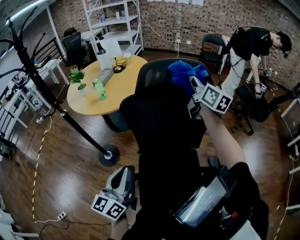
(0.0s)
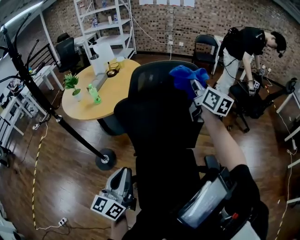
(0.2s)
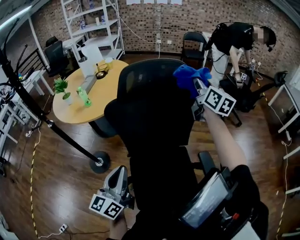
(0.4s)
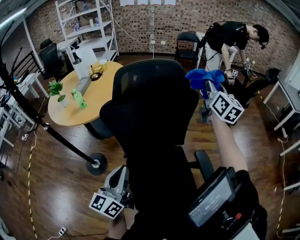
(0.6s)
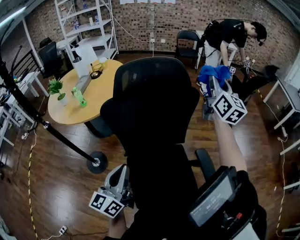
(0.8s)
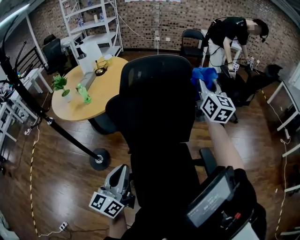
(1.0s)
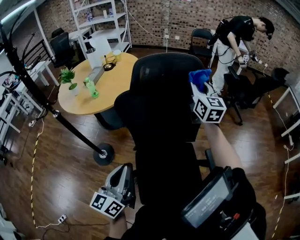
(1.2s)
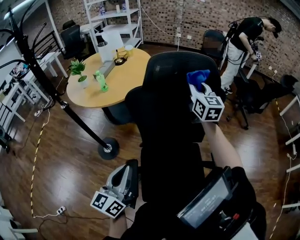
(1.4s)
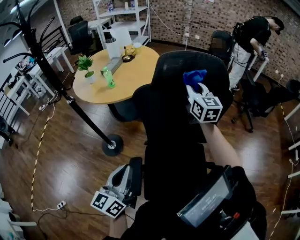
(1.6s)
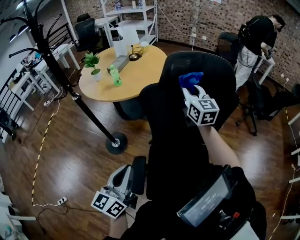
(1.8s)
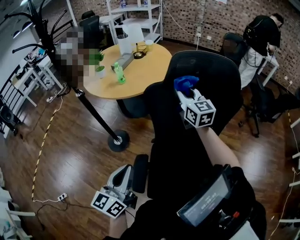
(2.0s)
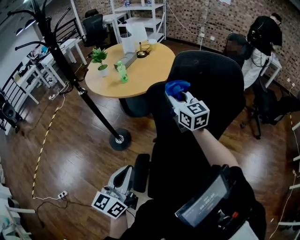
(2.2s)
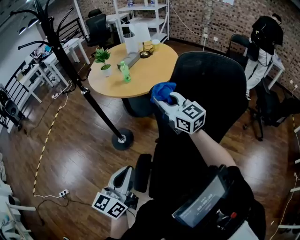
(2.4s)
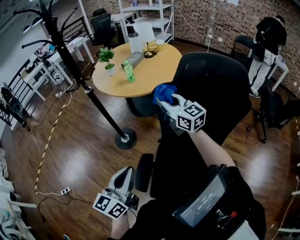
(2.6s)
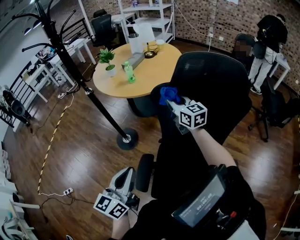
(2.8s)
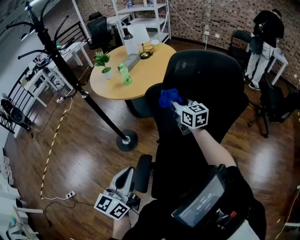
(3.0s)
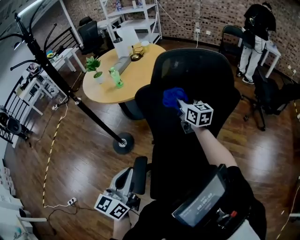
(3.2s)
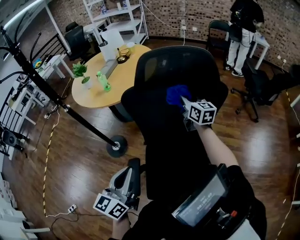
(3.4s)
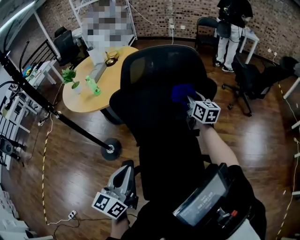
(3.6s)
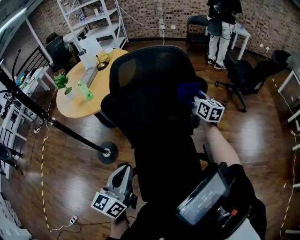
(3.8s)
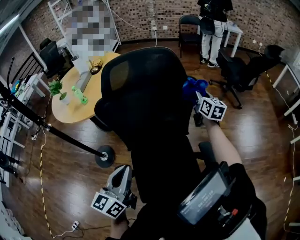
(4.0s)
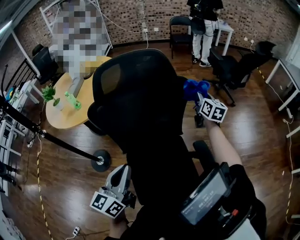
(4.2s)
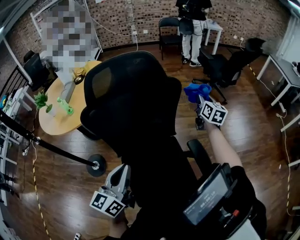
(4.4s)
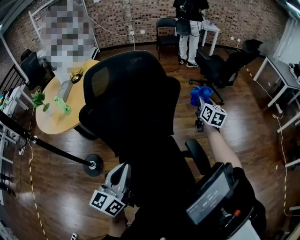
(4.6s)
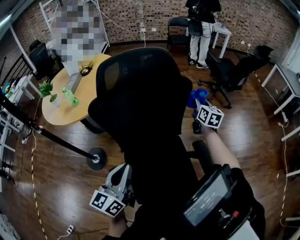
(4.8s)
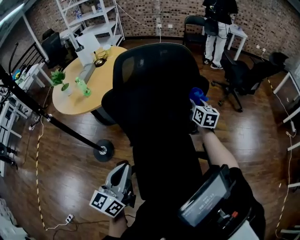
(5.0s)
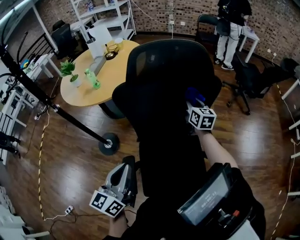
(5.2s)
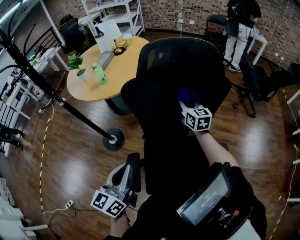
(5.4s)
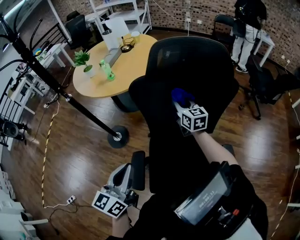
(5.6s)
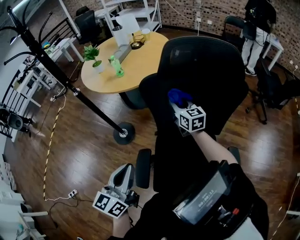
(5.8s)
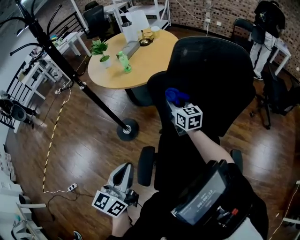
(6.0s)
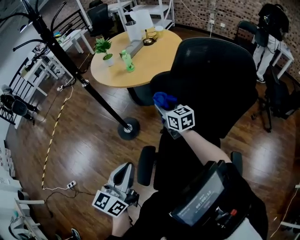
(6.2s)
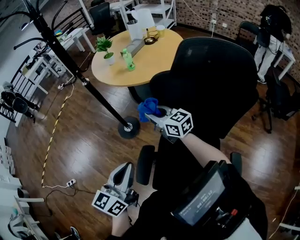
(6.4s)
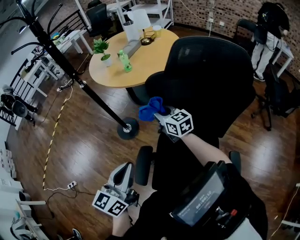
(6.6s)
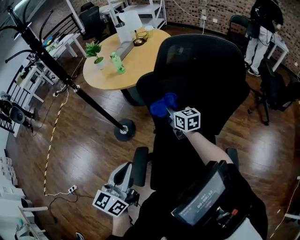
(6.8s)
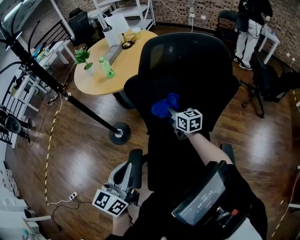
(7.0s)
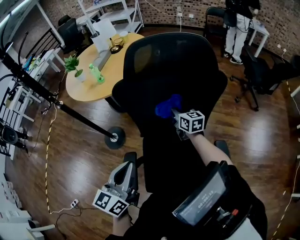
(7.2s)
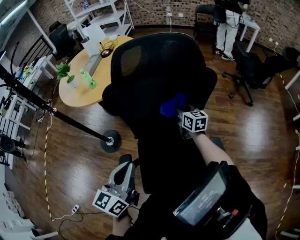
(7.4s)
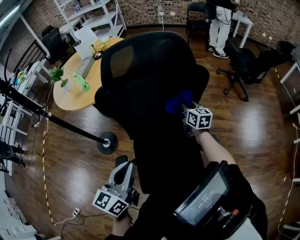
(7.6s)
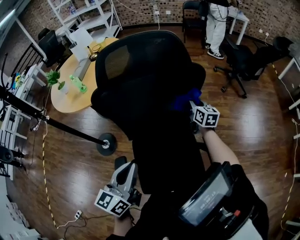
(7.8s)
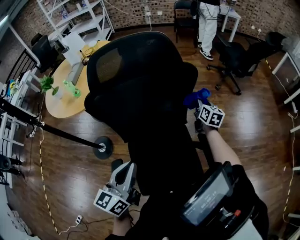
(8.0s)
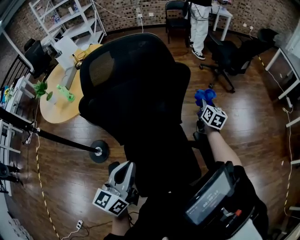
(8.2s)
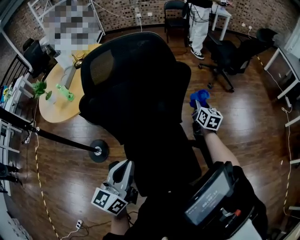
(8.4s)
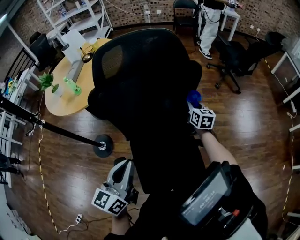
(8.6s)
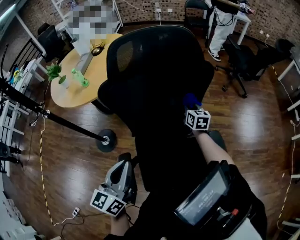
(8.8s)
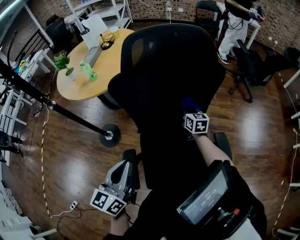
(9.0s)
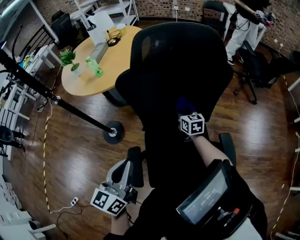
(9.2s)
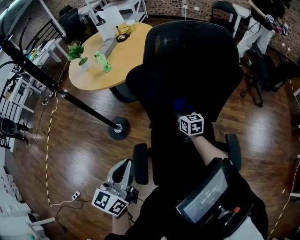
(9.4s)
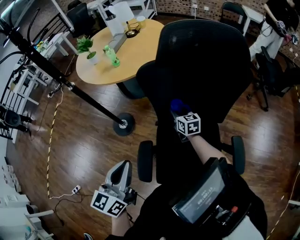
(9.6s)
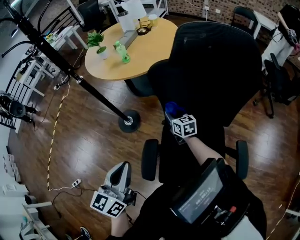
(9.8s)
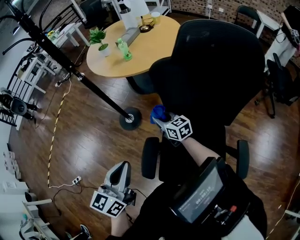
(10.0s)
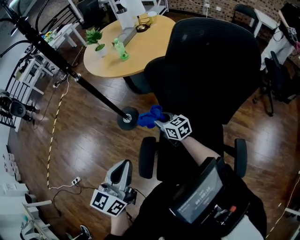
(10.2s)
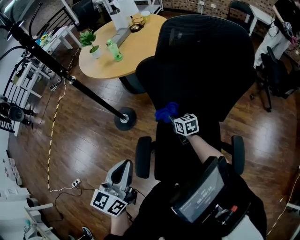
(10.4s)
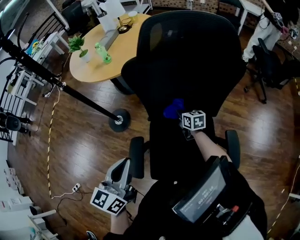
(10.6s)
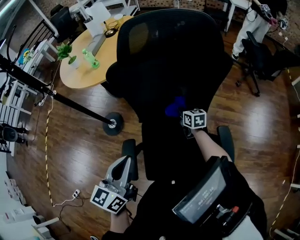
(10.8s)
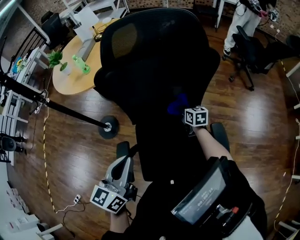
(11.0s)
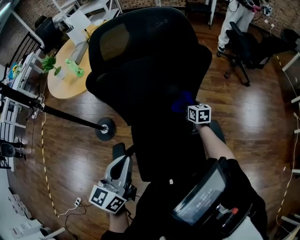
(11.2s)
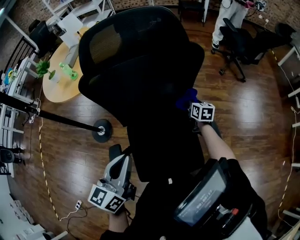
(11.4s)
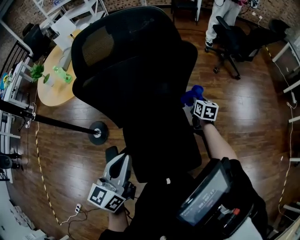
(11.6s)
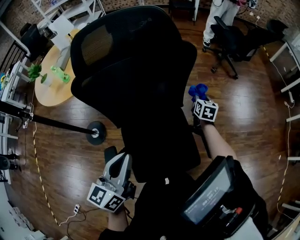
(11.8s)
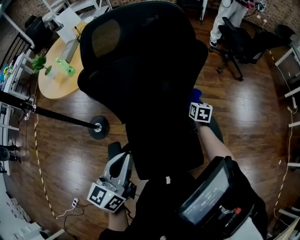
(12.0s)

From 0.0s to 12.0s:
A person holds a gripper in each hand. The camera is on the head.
From 0.0s to 1.6s: The right gripper is displaced downward by about 5 cm, goes to the right and returns, some 15 cm each way, and swivels about 20 degrees.
From 1.6s to 3.0s: The right gripper heads to the left and downward, covering approximately 15 cm, and changes its angle by about 30 degrees.
From 3.0s to 4.4s: The right gripper ends up about 50 cm from where it was, and swivels about 60 degrees. Meanwhile the left gripper ends up some 15 cm from where it was, and swivels some 30 degrees.
From 4.4s to 6.0s: The left gripper changes place by roughly 20 cm, and turns by about 30 degrees; the right gripper ends up roughly 50 cm from where it was, and changes its angle by roughly 50 degrees.
From 6.0s to 7.6s: The right gripper changes place by some 30 cm, and swivels roughly 30 degrees, while the left gripper changes place by roughly 15 cm.
From 7.6s to 9.0s: The right gripper travels downward by about 5 cm, and moves approximately 20 cm to the right and comes back. Meanwhile the left gripper shifts some 5 cm to the left.
From 9.0s to 10.4s: The right gripper ends up approximately 25 cm from where it was, and rotates approximately 30 degrees.
From 10.4s to 12.0s: The left gripper changes place by some 15 cm, and turns by approximately 20 degrees; the right gripper shifts by about 35 cm, and rotates some 50 degrees.

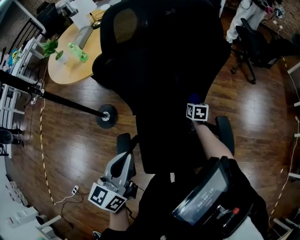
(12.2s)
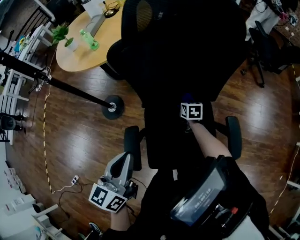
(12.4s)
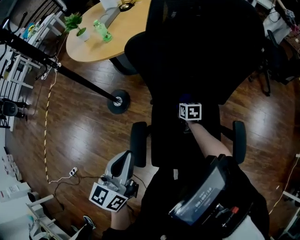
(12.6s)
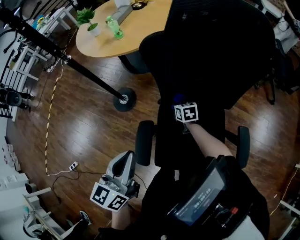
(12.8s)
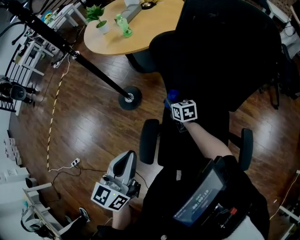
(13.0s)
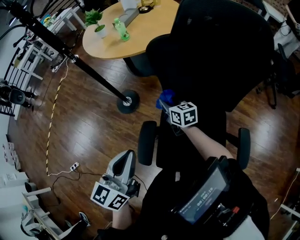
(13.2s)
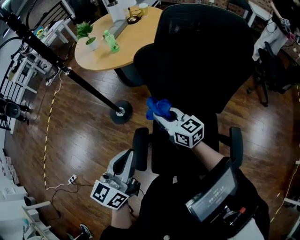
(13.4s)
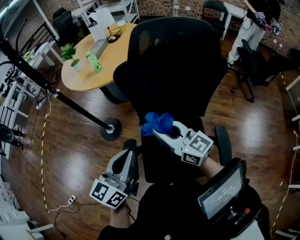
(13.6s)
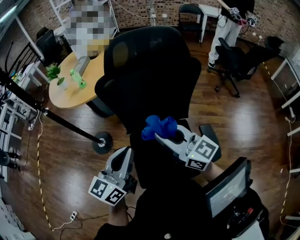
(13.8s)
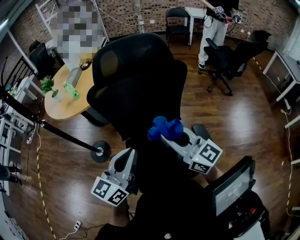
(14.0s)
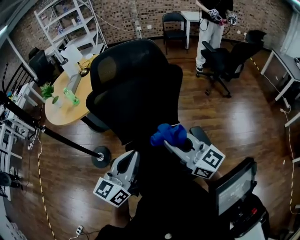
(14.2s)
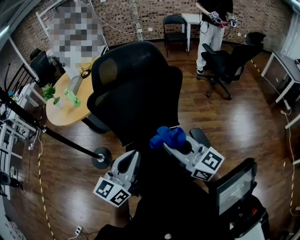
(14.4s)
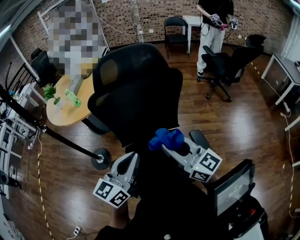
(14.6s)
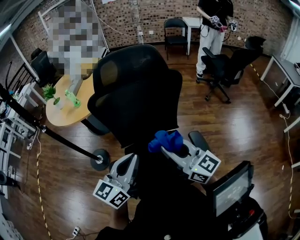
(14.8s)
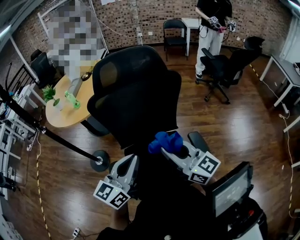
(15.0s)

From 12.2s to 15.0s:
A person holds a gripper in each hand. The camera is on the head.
From 12.2s to 13.6s: The right gripper is displaced upward by about 30 cm, and tilts its fingers some 50 degrees upward.
From 13.6s to 15.0s: The left gripper shifts approximately 15 cm to the right; the right gripper goes roughly 20 cm to the right, backward and upward.

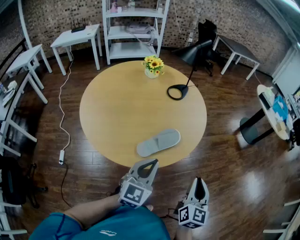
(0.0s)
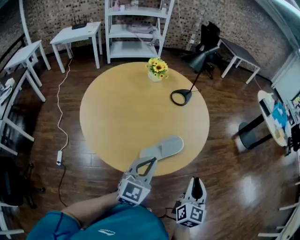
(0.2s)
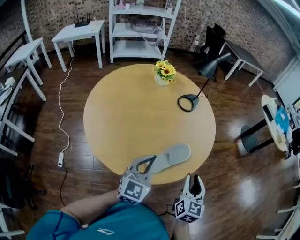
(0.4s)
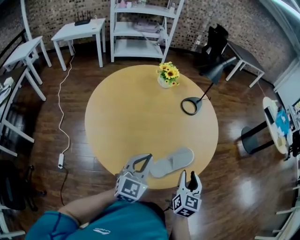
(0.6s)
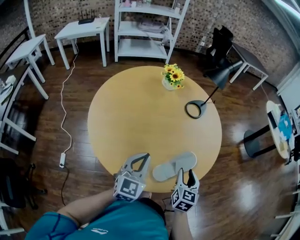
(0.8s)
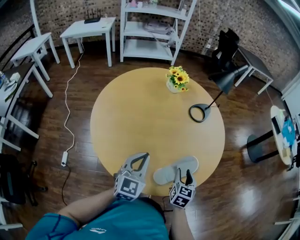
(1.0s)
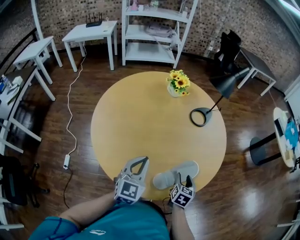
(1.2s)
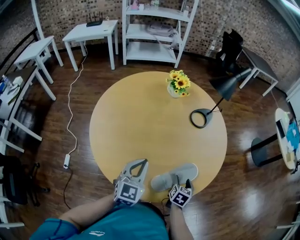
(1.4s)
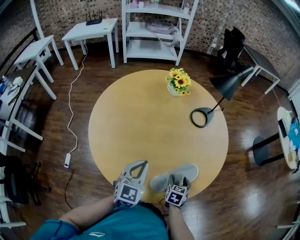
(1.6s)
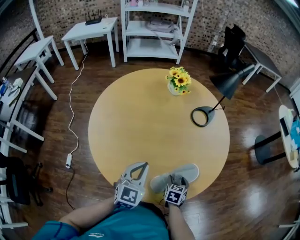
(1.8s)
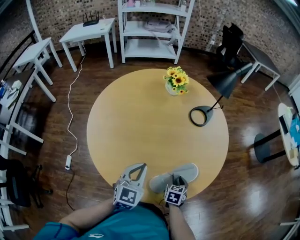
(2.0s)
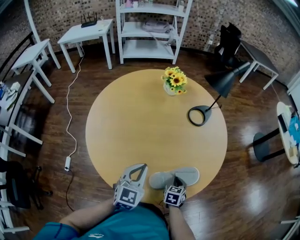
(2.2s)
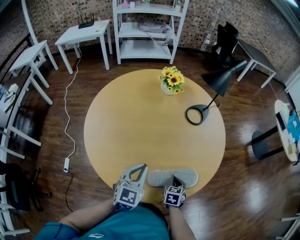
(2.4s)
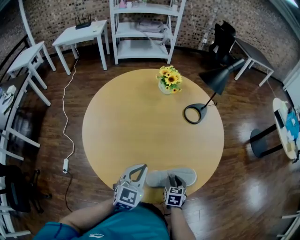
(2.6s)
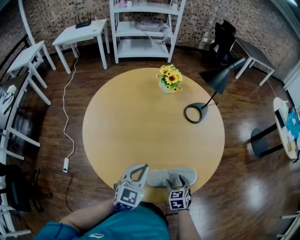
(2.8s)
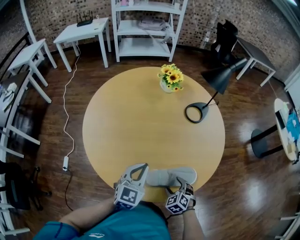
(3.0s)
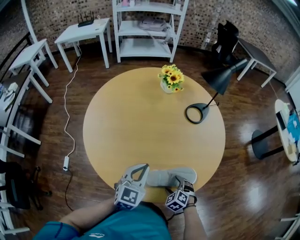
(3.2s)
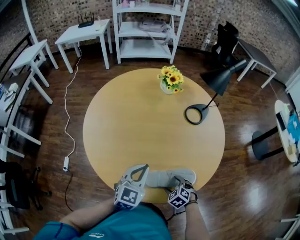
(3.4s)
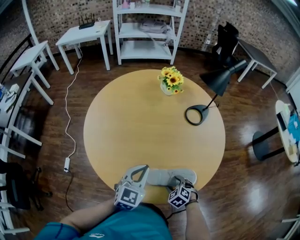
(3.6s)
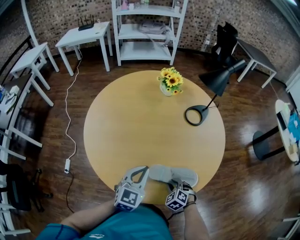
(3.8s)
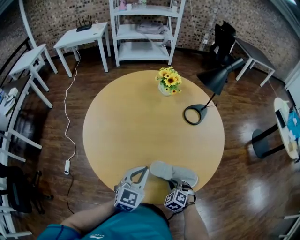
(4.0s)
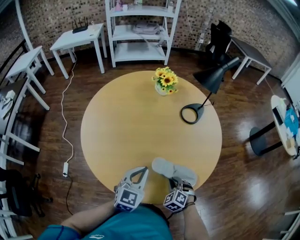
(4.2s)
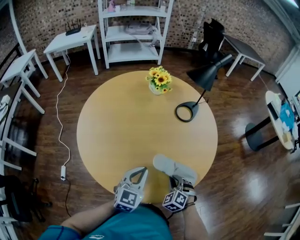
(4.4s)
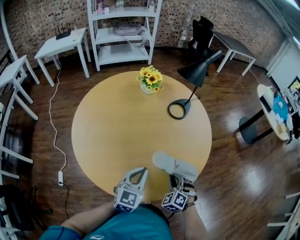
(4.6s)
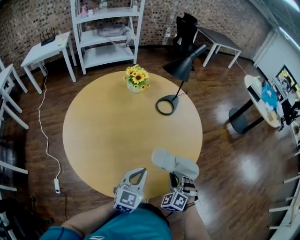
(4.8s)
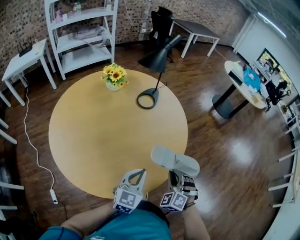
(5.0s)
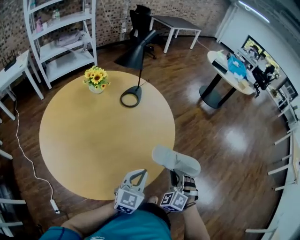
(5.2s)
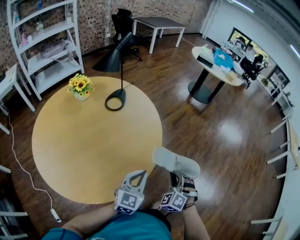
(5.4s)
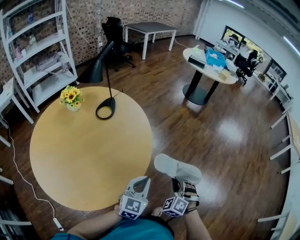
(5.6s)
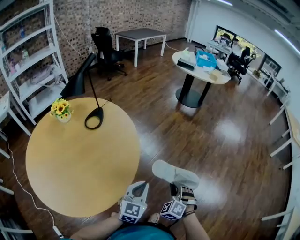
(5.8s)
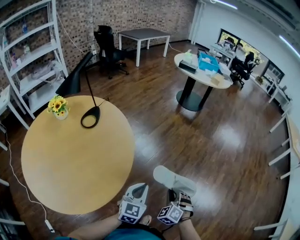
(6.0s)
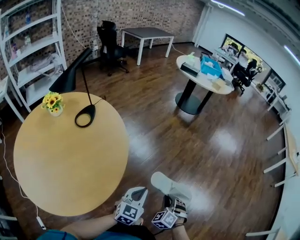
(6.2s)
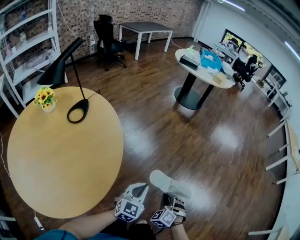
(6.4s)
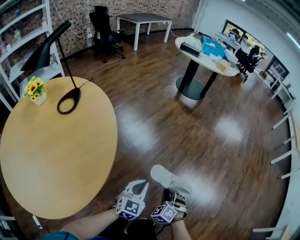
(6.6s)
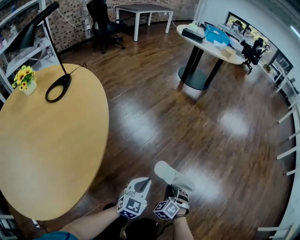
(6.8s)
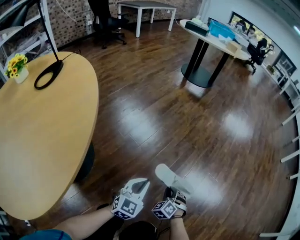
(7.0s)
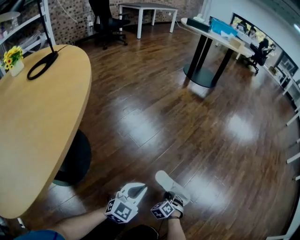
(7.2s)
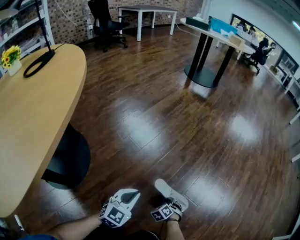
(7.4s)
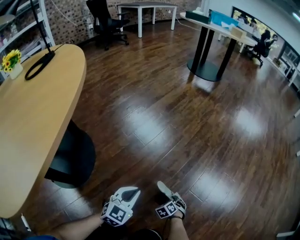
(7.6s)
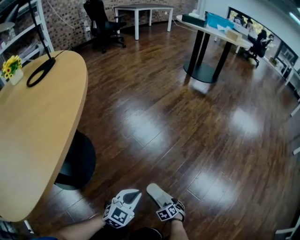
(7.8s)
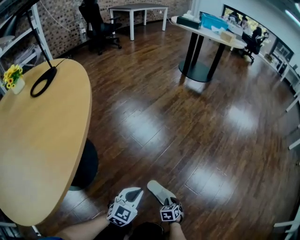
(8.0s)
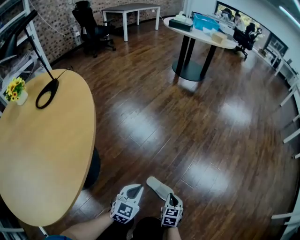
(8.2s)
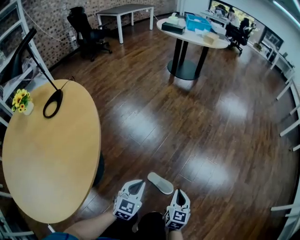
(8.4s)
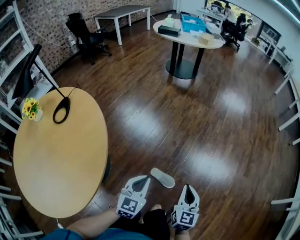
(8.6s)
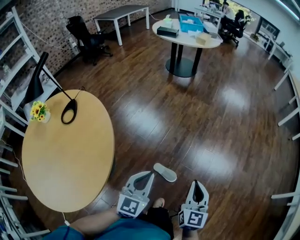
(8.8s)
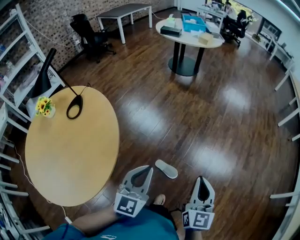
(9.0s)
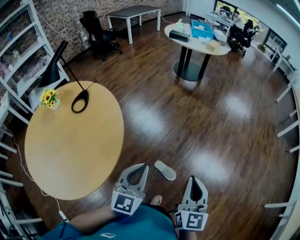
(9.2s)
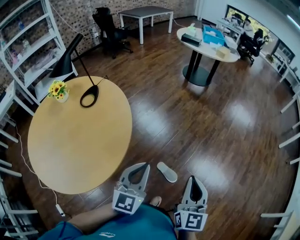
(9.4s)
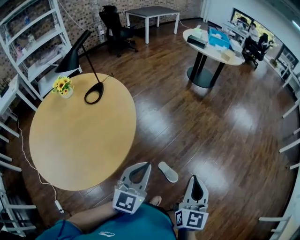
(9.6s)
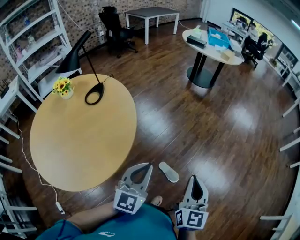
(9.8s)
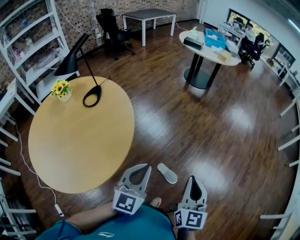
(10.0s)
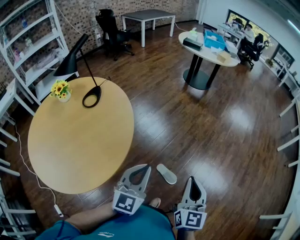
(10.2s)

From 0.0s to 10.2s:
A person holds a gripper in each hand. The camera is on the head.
From 0.0s to 1.4s: The left gripper heads to the left and forward, covering about 30 cm. Meanwhile the right gripper heads downward, forward and to the left, covering approximately 40 cm, points its fingers some 40 degrees further downward, and opens up.
From 1.4s to 3.0s: The left gripper moves some 5 cm; the right gripper moves about 5 cm, twists roughly 60 degrees counterclockwise, seen from behind, and closes and opens again.
From 3.0s to 4.4s: The right gripper moves upward, approximately 5 cm, and closes.
From 4.4s to 5.8s: The pair of grippers is taken about 40 cm. The left gripper rotates roughly 40 degrees, while the right gripper changes its angle by some 40 degrees.
From 5.8s to 7.2s: The left gripper heads downward and forward, covering approximately 60 cm. The right gripper goes roughly 70 cm downward, and swivels approximately 20 degrees.
From 7.2s to 8.8s: Both grippers move upward, about 70 cm. The right gripper tilts its fingers some 50 degrees upward, and opens and closes again.
From 8.8s to 10.2s: The two grippers go approximately 15 cm to the left, upward and backward.
